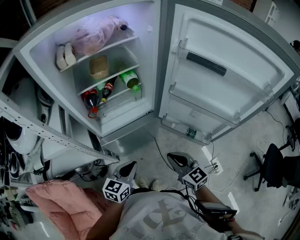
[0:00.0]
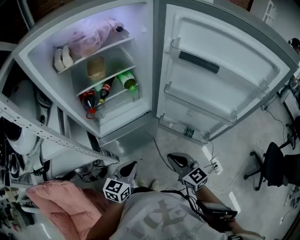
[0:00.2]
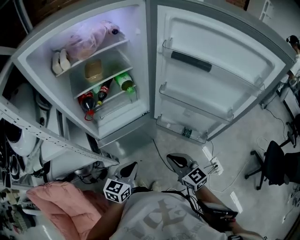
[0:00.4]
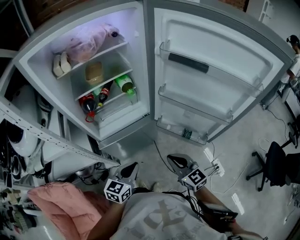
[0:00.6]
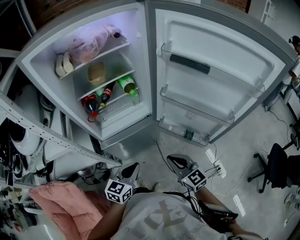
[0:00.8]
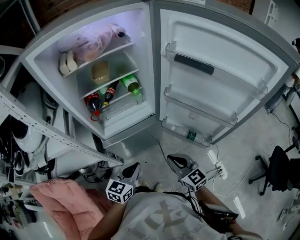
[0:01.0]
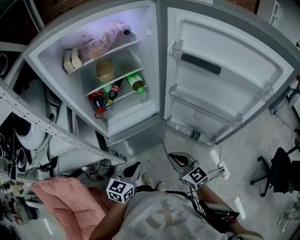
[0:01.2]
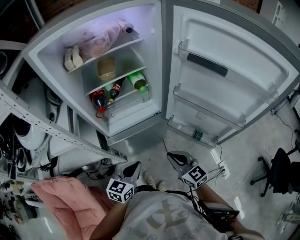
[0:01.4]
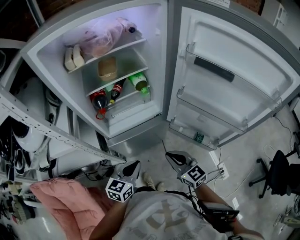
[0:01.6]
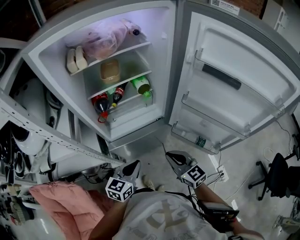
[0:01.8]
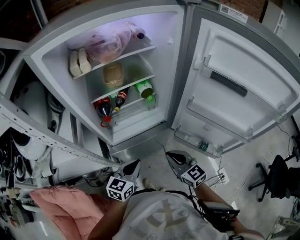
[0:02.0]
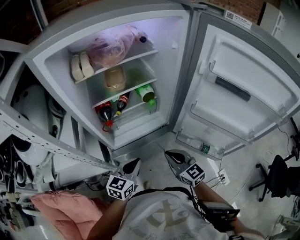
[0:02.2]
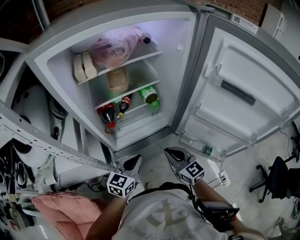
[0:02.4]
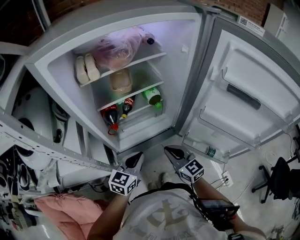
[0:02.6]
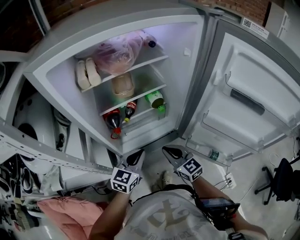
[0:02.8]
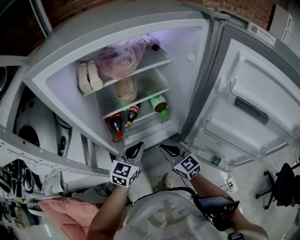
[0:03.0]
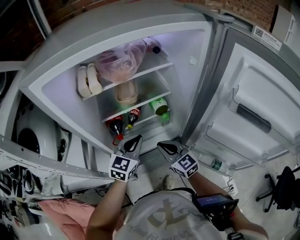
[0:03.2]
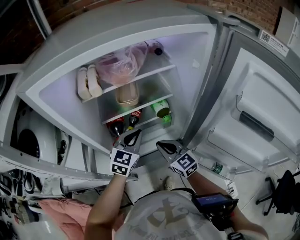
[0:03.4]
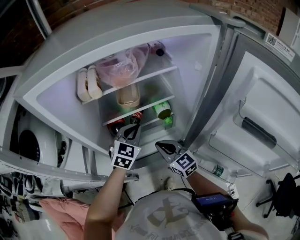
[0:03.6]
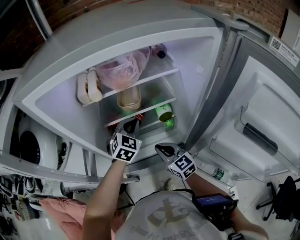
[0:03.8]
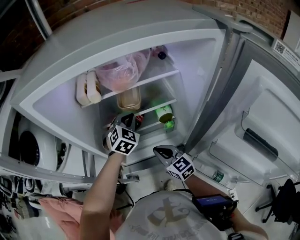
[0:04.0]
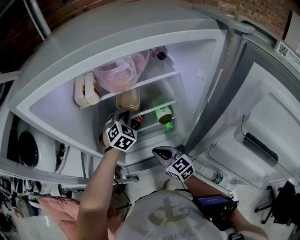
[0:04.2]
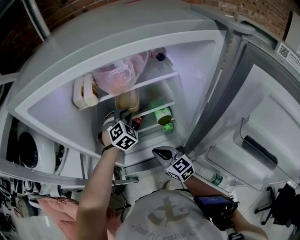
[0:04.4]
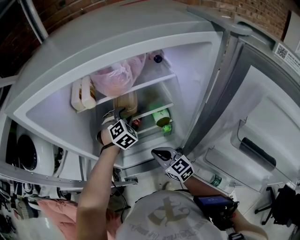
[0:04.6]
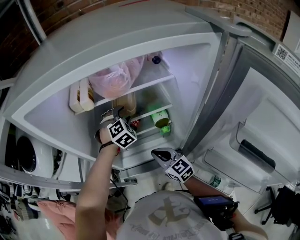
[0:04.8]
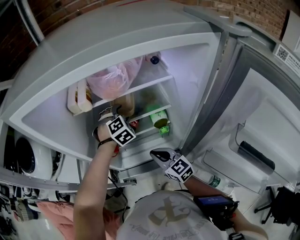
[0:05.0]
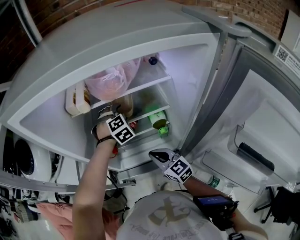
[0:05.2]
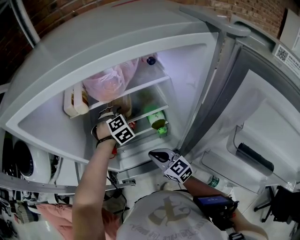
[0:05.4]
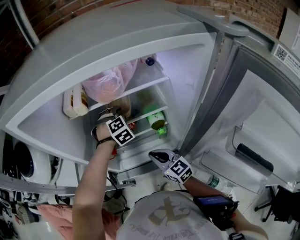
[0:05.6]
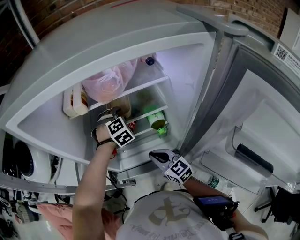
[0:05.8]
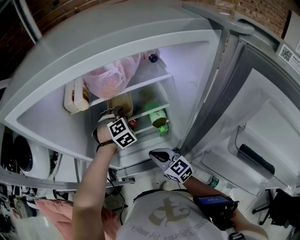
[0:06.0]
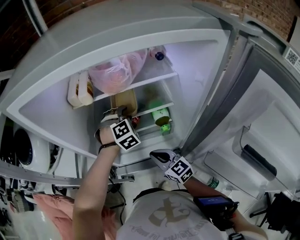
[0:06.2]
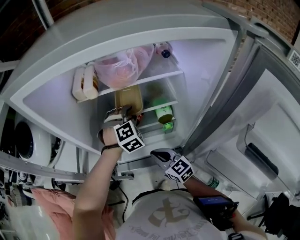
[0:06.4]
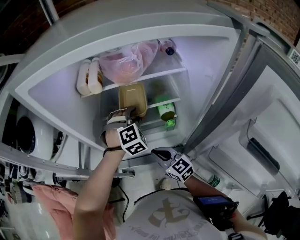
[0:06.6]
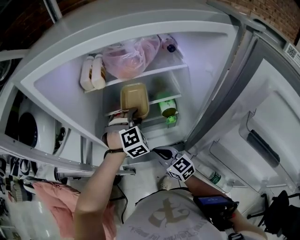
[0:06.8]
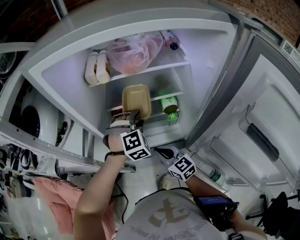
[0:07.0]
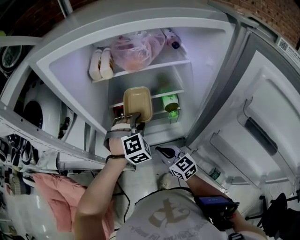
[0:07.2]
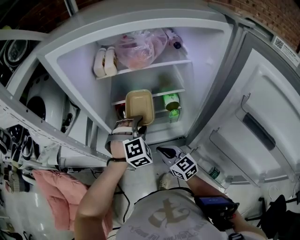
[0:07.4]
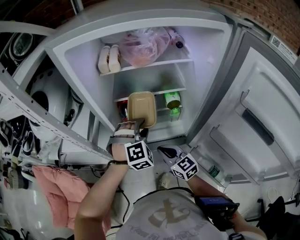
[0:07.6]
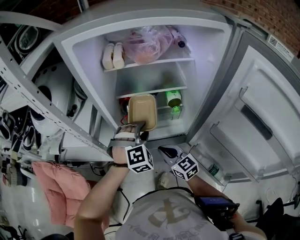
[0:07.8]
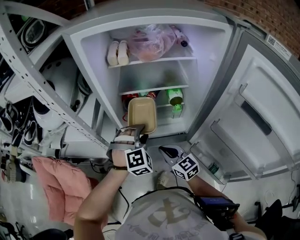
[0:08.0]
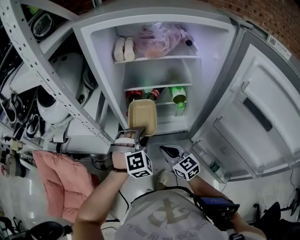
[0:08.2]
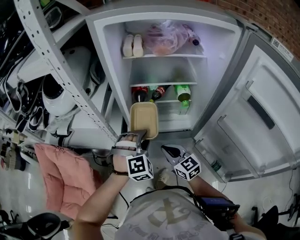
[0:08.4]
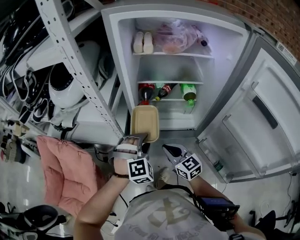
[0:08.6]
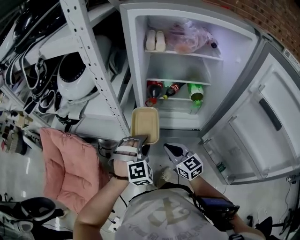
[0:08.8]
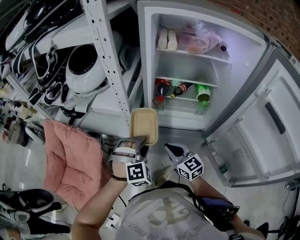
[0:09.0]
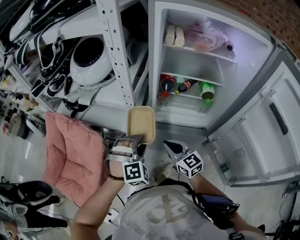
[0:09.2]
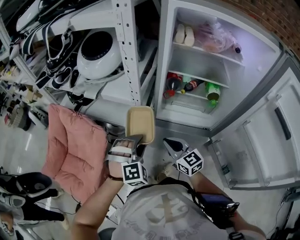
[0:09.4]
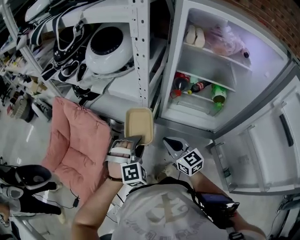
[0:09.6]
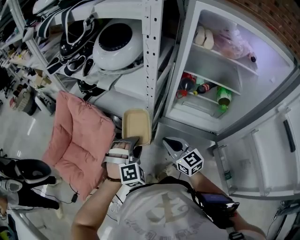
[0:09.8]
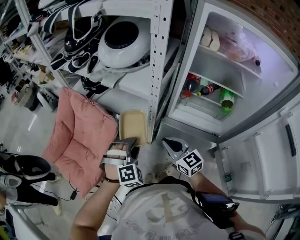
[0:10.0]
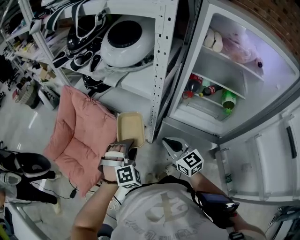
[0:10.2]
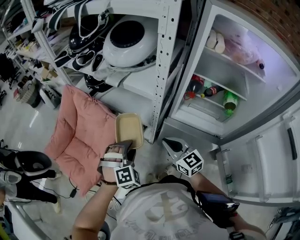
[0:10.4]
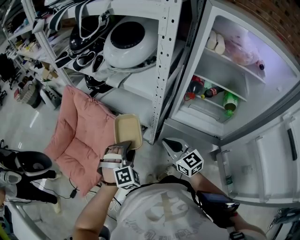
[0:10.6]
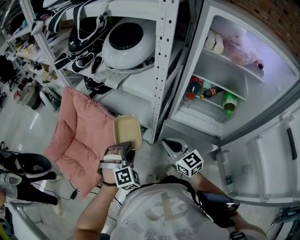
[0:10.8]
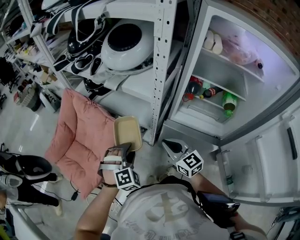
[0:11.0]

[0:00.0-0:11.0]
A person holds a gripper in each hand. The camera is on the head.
0:00.0 to 0:01.6: The grippers make only small movements.
0:01.6 to 0:03.2: The right gripper goes approximately 25 cm forward and to the left, while the left gripper is displaced forward by roughly 25 cm, and turns by some 20 degrees.
0:03.2 to 0:04.8: The left gripper shifts roughly 20 cm forward, turns by roughly 60 degrees, and opens. The right gripper is displaced forward by some 5 cm.
0:04.8 to 0:06.2: The grippers move only a little.
0:06.2 to 0:07.8: The left gripper shifts roughly 25 cm backward and to the left, while the right gripper moves backward and to the left, some 10 cm.
0:07.8 to 0:09.4: The left gripper travels to the left and backward by about 25 cm; the right gripper shifts roughly 15 cm to the left.
0:09.4 to 0:11.0: The right gripper travels to the left by some 5 cm. Meanwhile the left gripper goes approximately 10 cm to the left.

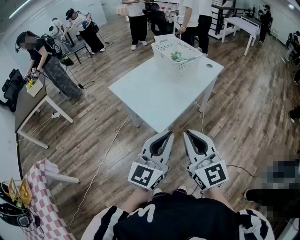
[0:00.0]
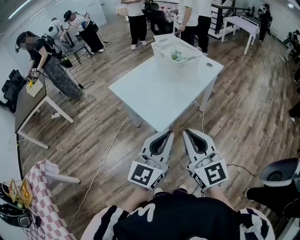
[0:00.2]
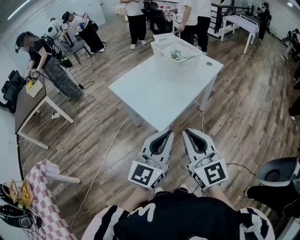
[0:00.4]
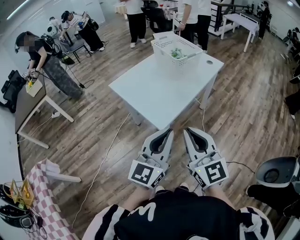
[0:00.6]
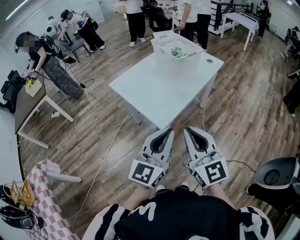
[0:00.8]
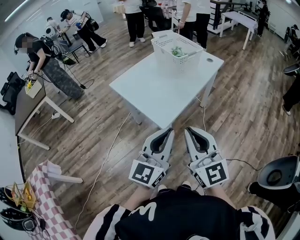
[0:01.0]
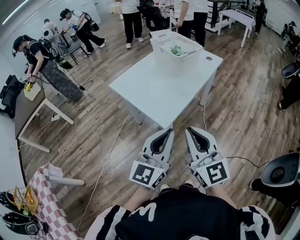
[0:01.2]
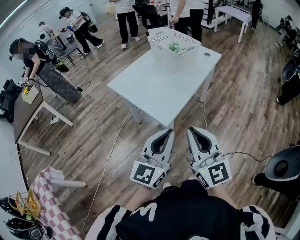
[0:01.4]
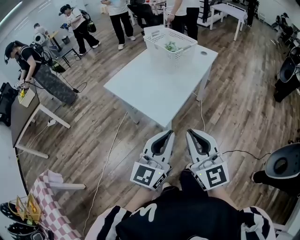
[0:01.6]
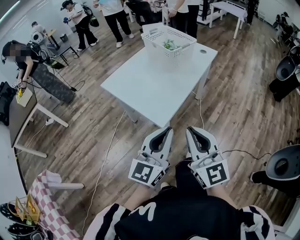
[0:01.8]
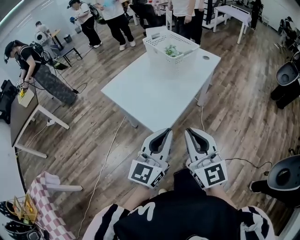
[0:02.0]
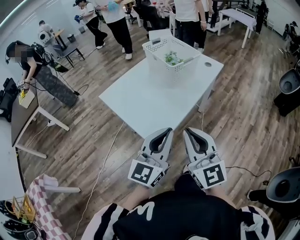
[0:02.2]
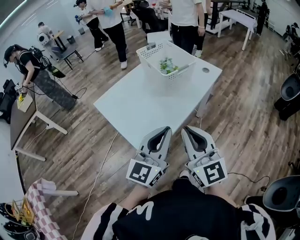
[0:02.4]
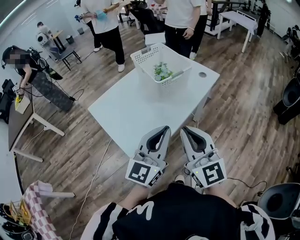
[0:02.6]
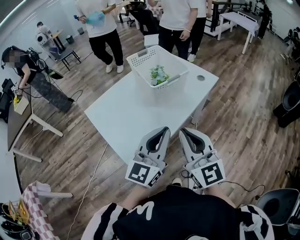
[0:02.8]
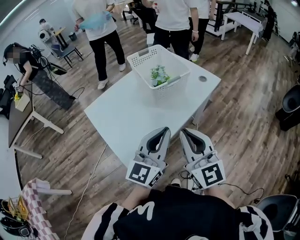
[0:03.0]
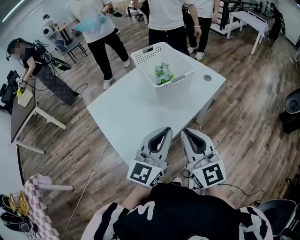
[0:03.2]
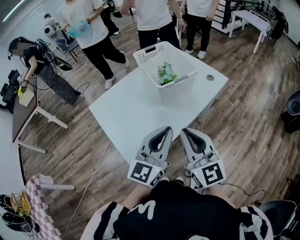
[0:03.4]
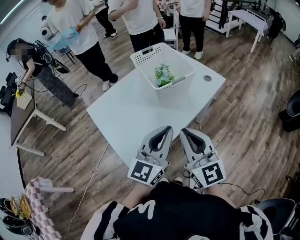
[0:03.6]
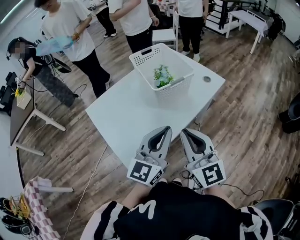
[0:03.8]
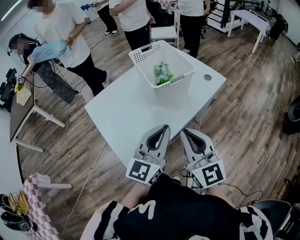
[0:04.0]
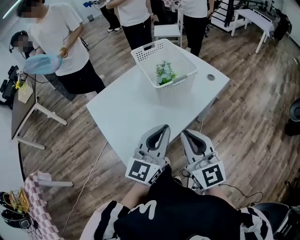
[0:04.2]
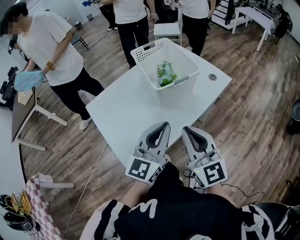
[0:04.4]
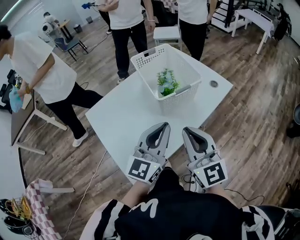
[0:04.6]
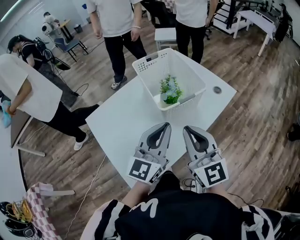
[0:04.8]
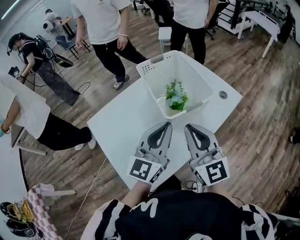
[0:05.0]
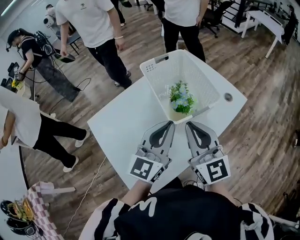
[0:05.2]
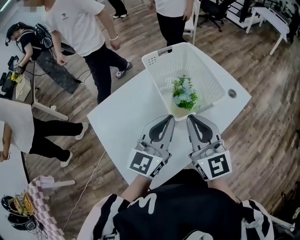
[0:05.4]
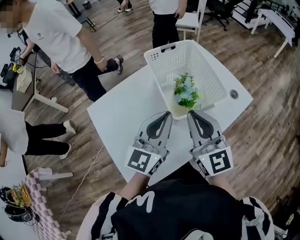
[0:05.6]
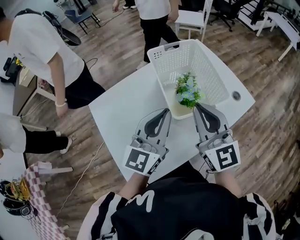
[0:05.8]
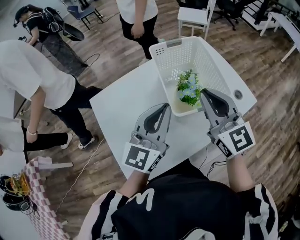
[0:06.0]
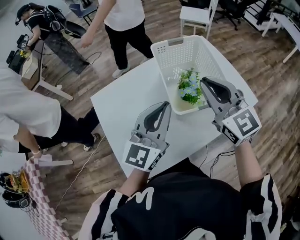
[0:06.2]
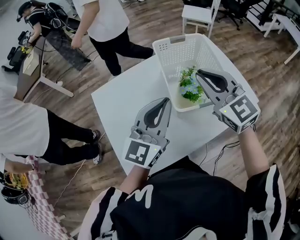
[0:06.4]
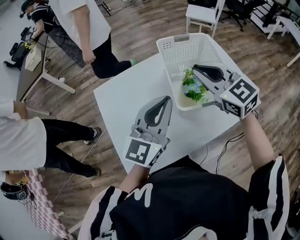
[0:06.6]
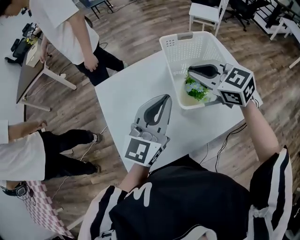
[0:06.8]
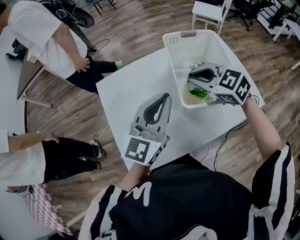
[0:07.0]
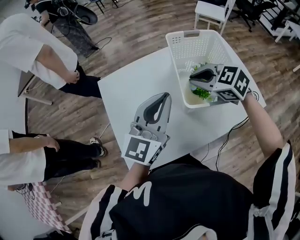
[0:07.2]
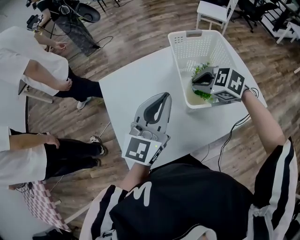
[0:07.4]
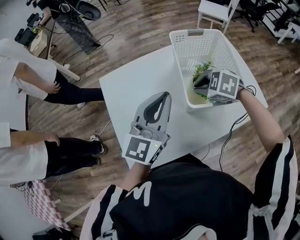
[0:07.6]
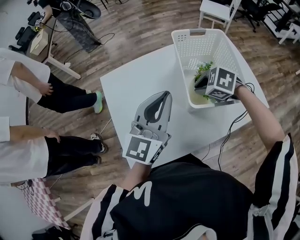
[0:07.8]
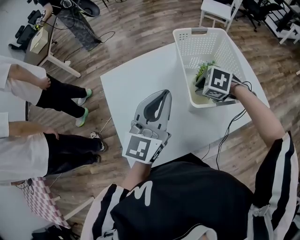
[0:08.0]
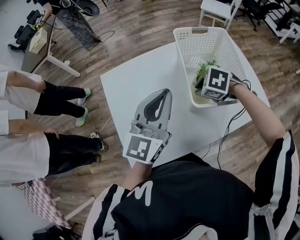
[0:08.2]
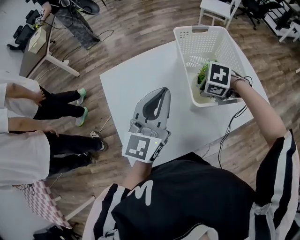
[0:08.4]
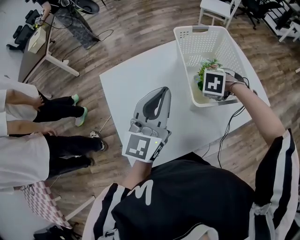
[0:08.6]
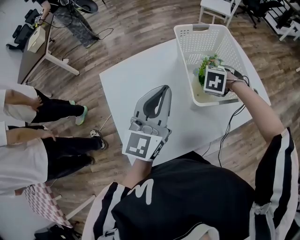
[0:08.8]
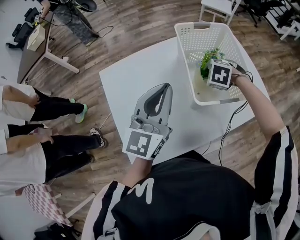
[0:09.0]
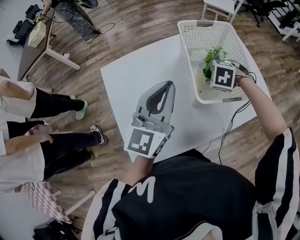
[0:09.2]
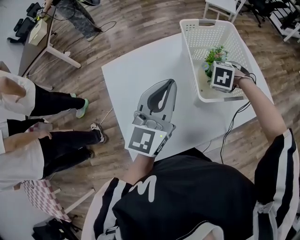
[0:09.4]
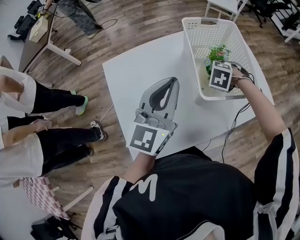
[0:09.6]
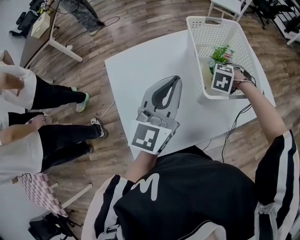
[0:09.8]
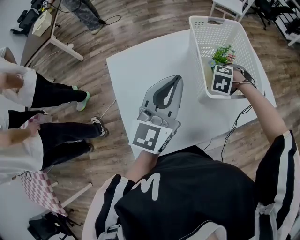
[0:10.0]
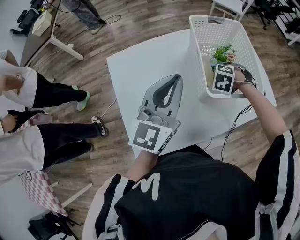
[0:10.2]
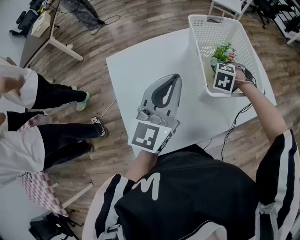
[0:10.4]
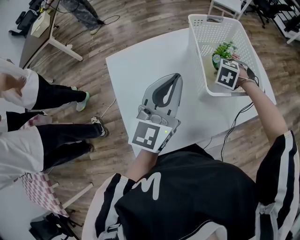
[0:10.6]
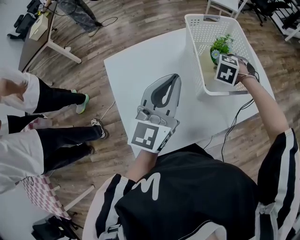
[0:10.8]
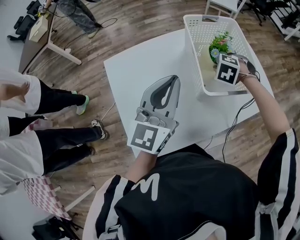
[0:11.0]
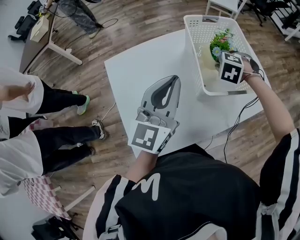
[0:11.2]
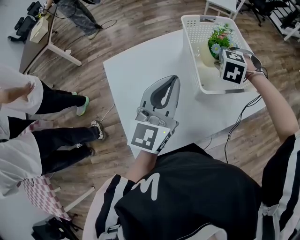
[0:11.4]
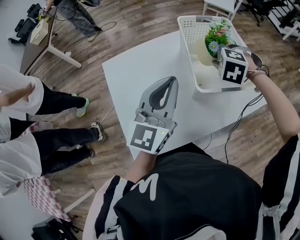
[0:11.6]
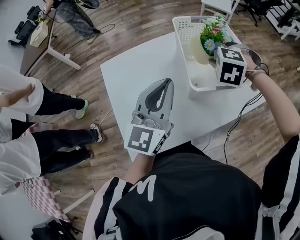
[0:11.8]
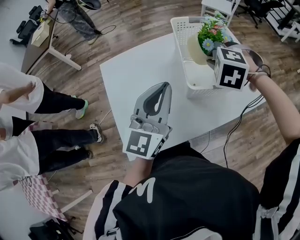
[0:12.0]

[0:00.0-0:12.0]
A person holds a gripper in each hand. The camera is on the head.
0:00.0 to 0:01.6: The left gripper moves roughly 5 cm, while the right gripper changes place by about 5 cm.
0:01.6 to 0:03.0: Both grippers travel together forward and to the right, roughly 30 cm.
0:03.0 to 0:04.4: Both grippers travel together forward, about 5 cm.
0:04.4 to 0:06.0: Both grippers travel together forward, some 20 cm.
0:06.0 to 0:07.6: The right gripper shifts some 20 cm downward, and angles its fingers downward, by roughly 60 degrees.
0:07.6 to 0:09.0: The right gripper shifts roughly 5 cm downward, and opens.
0:09.0 to 0:10.4: The grippers stay close to where they were, moving slightly.
0:10.4 to 0:12.0: The left gripper shifts by about 5 cm; the right gripper goes some 15 cm upward.

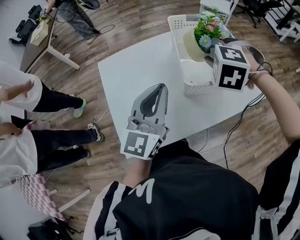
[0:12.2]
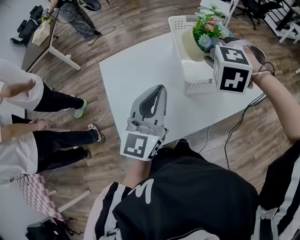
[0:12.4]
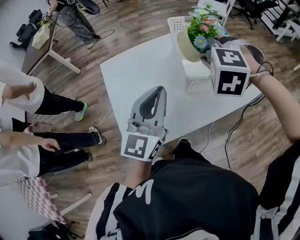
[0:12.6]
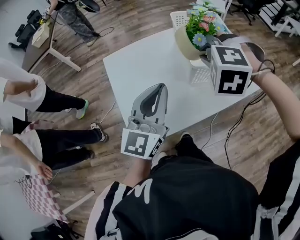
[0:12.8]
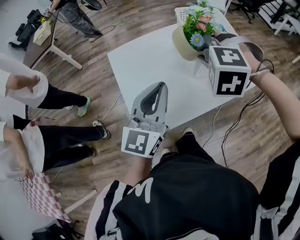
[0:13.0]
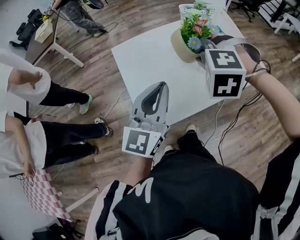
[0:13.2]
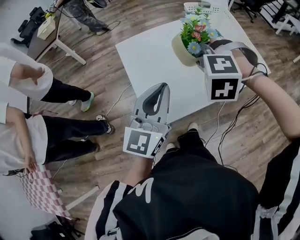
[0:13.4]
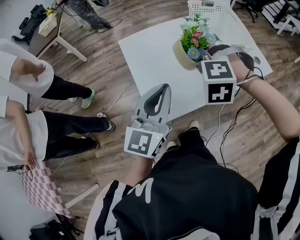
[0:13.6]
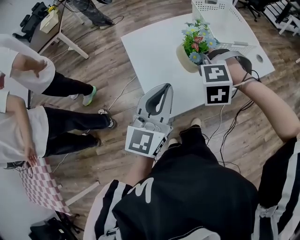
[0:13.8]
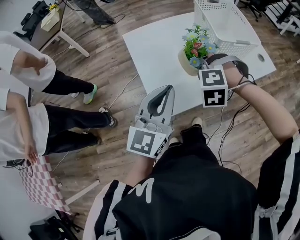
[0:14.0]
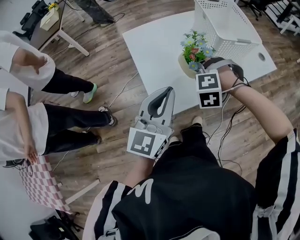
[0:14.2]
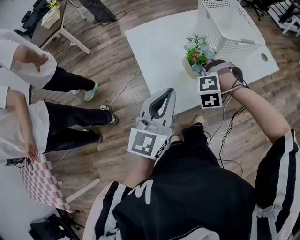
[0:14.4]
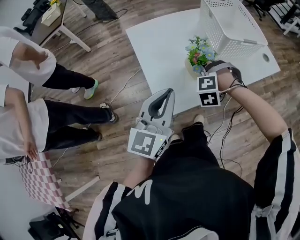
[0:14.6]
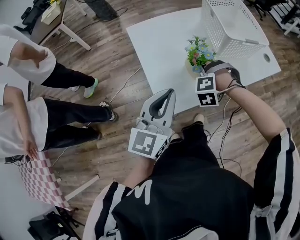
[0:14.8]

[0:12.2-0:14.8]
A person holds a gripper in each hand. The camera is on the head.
0:12.2 to 0:13.4: The two grippers go approximately 20 cm backward and to the left.
0:13.4 to 0:14.8: The left gripper shifts roughly 10 cm downward and backward, while the right gripper goes some 20 cm downward.
